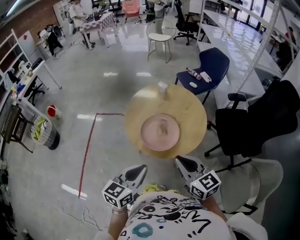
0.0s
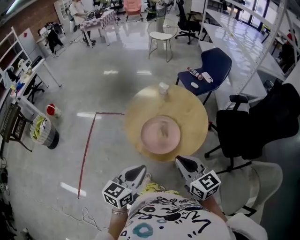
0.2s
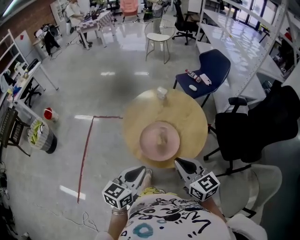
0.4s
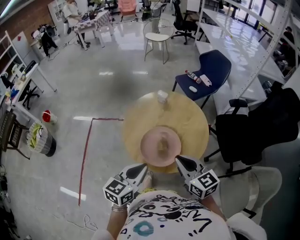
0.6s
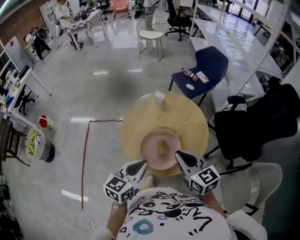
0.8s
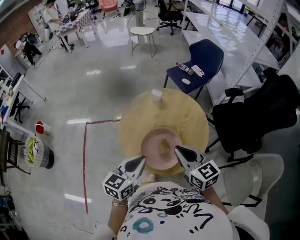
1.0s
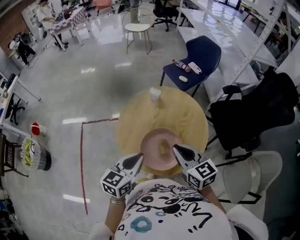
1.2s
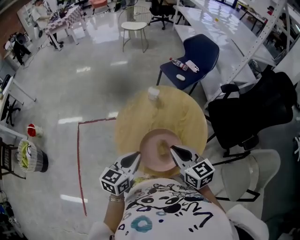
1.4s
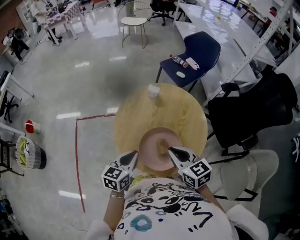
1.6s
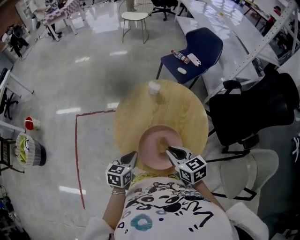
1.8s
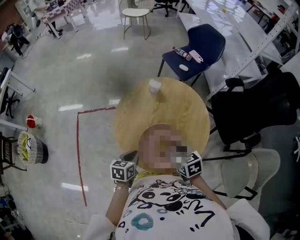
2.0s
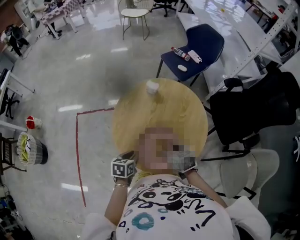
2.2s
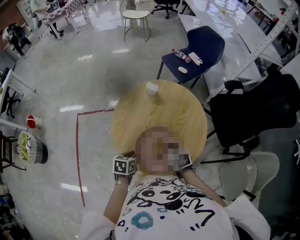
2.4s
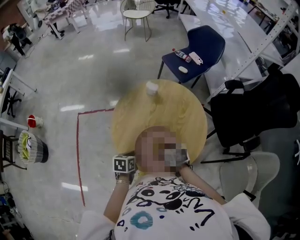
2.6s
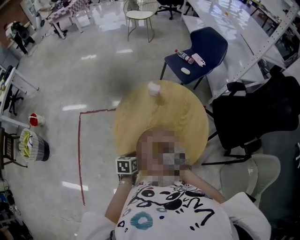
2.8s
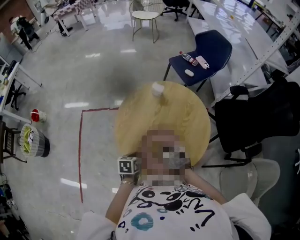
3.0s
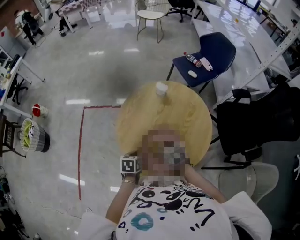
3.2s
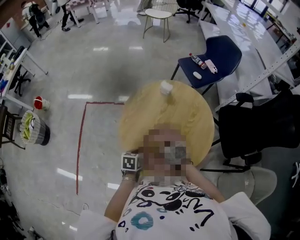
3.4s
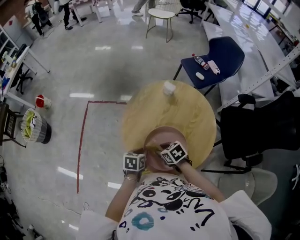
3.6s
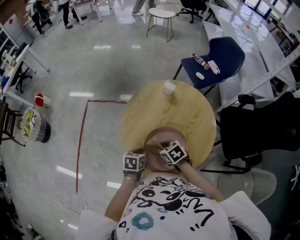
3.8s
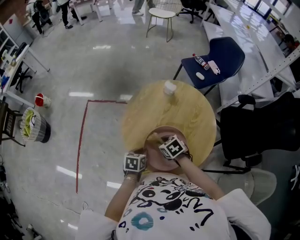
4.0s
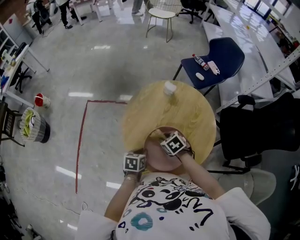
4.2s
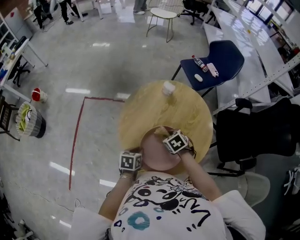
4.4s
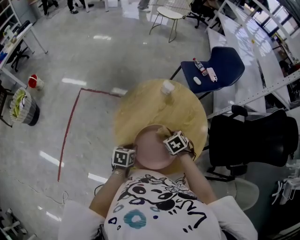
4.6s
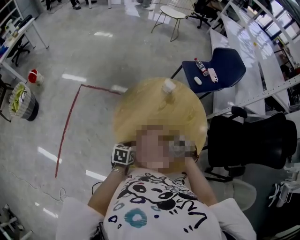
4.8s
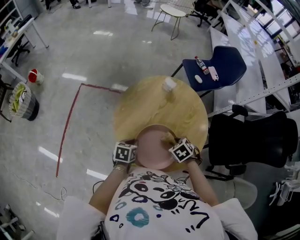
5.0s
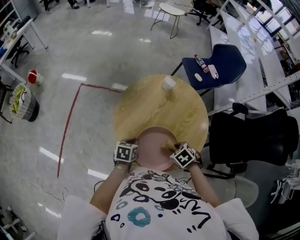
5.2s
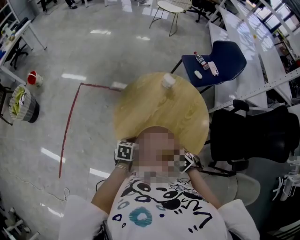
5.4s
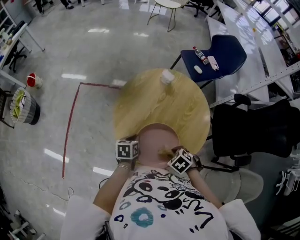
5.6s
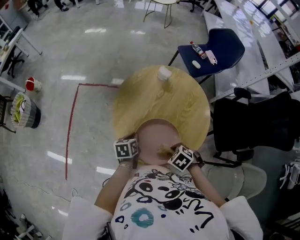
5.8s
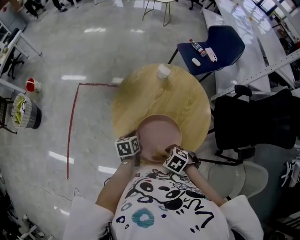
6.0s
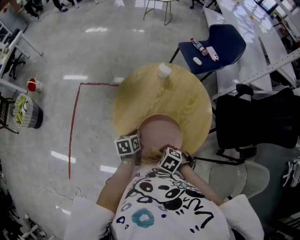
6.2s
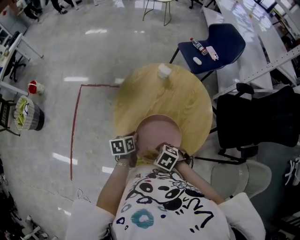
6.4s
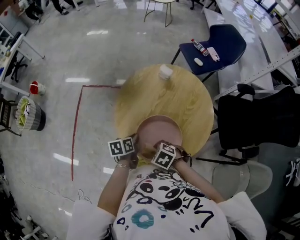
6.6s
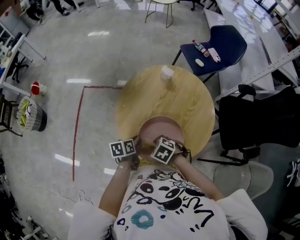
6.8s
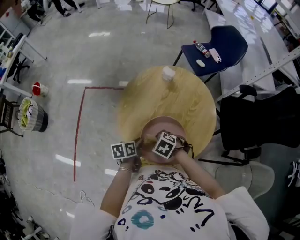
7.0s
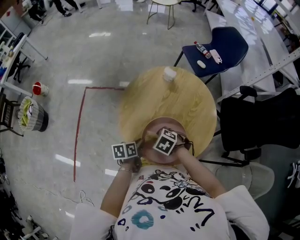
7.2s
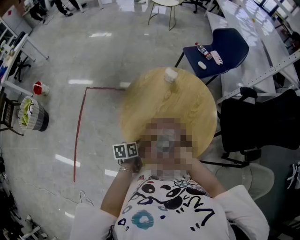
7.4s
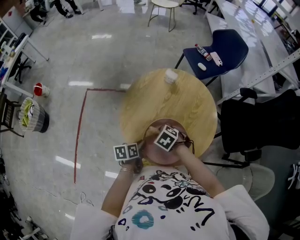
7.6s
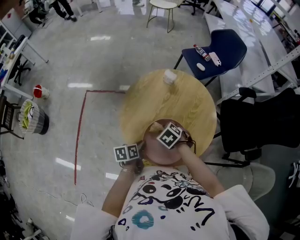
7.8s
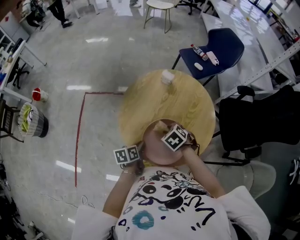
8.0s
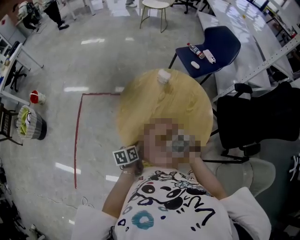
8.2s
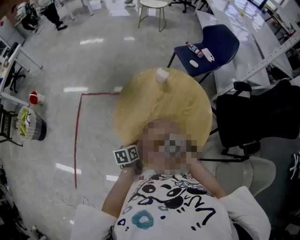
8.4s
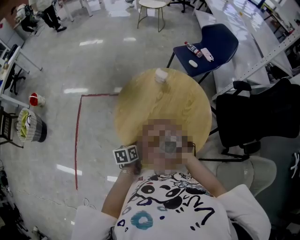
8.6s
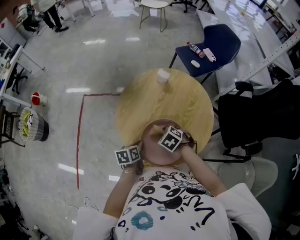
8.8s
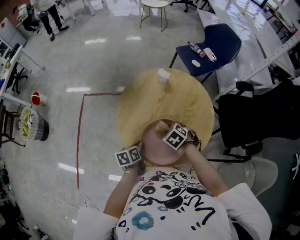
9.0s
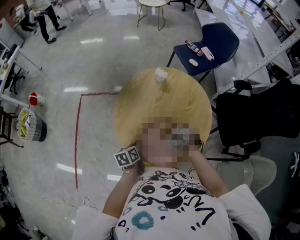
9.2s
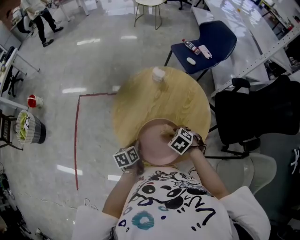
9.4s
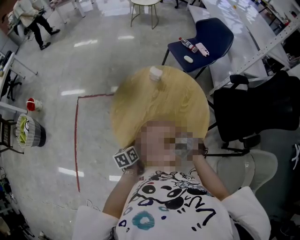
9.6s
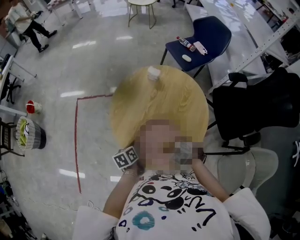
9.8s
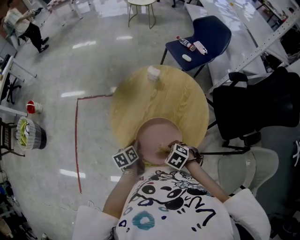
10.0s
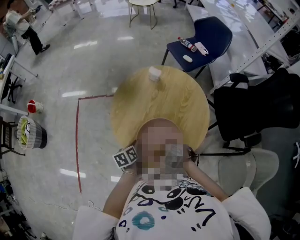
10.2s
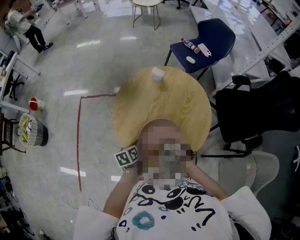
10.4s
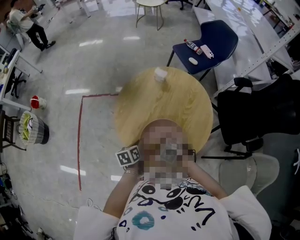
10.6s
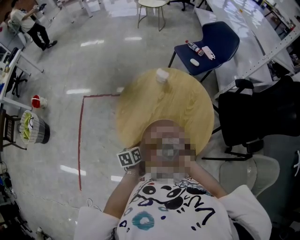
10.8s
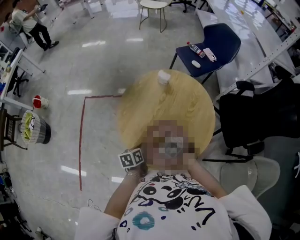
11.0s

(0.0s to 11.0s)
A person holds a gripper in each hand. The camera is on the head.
0.0s - 1.6s: Both grippers travel together forward, about 25 cm.
1.6s - 3.2s: The two grippers go approximately 15 cm downward. The right gripper rotates about 30 degrees, and opens its fingers. The left gripper swivels approximately 30 degrees.
3.2s - 4.8s: The right gripper changes place by approximately 10 cm, and turns by approximately 30 degrees.
4.8s - 6.2s: The right gripper shifts by roughly 15 cm, and changes its angle by roughly 30 degrees.
6.2s - 7.8s: The right gripper moves some 15 cm.
7.8s - 9.4s: The right gripper shifts by roughly 10 cm.
9.4s - 11.0s: The right gripper changes place by some 10 cm.

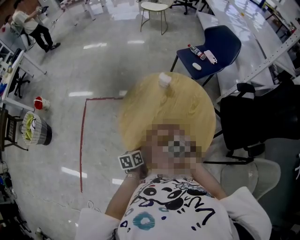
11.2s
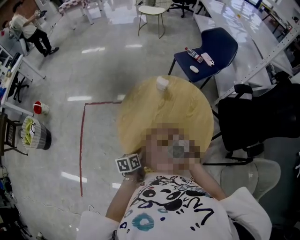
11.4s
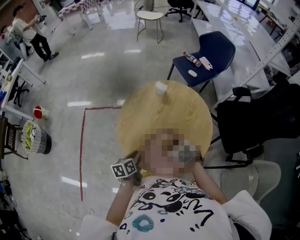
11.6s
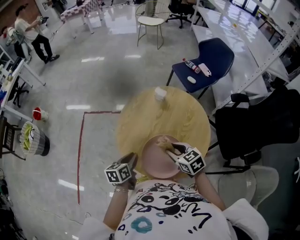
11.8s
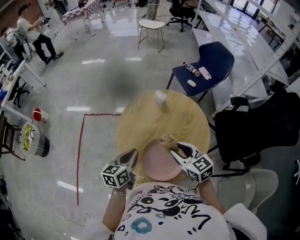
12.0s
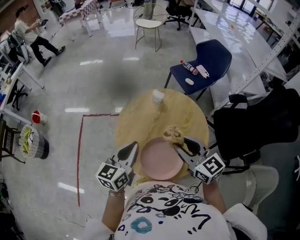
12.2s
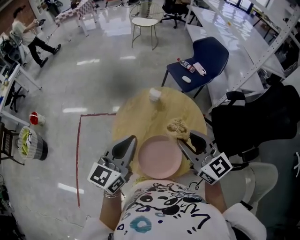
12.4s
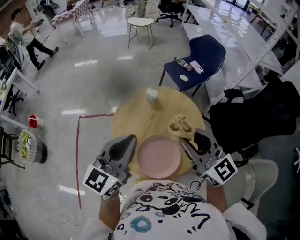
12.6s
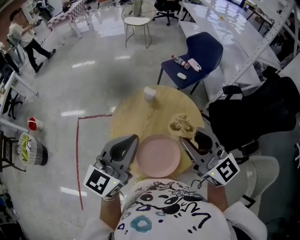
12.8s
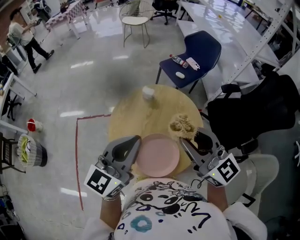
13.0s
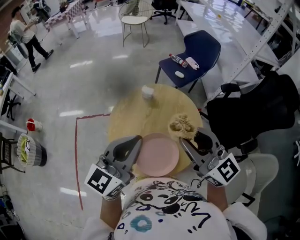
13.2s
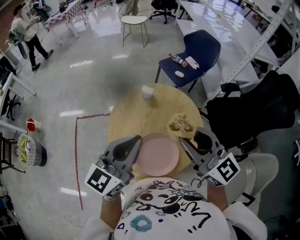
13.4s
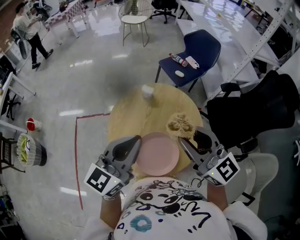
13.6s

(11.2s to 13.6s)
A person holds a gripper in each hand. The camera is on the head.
11.2s - 12.4s: Both grippers move upward, about 30 cm. The left gripper points its fingers approximately 40 degrees further upward. The right gripper tilts its fingers roughly 60 degrees upward.
12.4s - 13.6s: The right gripper goes about 5 cm upward; the left gripper shifts by roughly 5 cm.

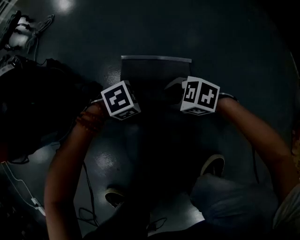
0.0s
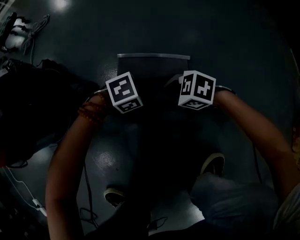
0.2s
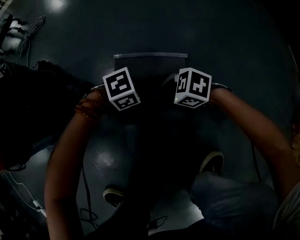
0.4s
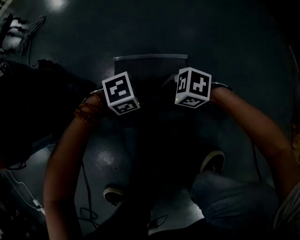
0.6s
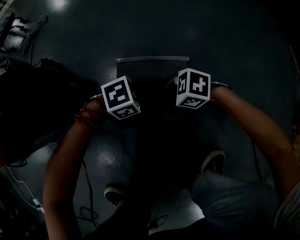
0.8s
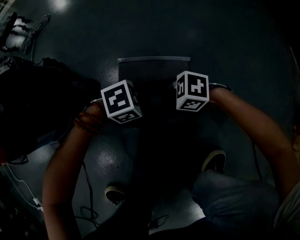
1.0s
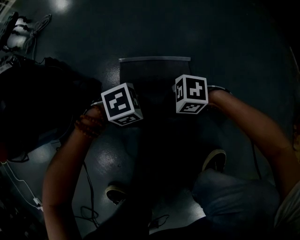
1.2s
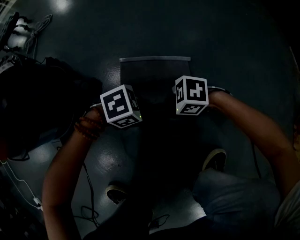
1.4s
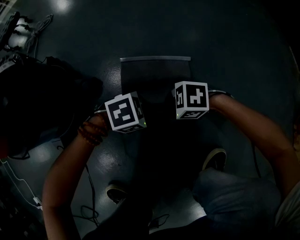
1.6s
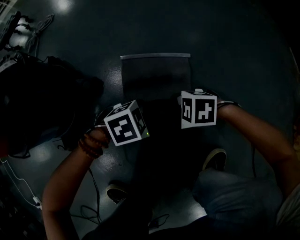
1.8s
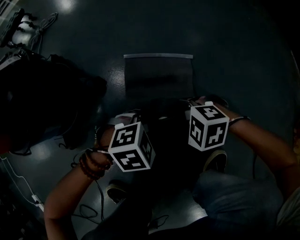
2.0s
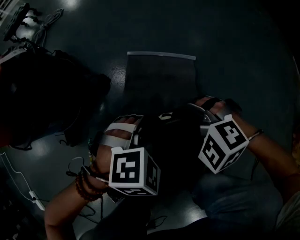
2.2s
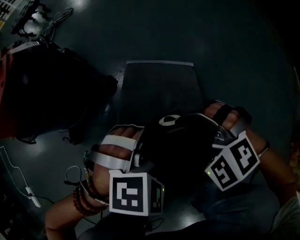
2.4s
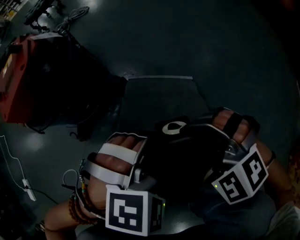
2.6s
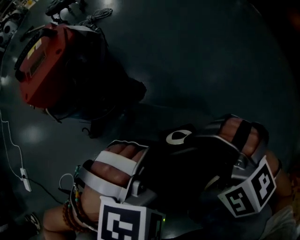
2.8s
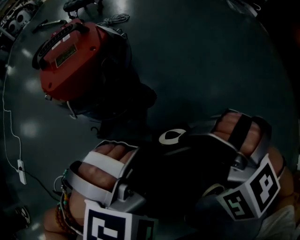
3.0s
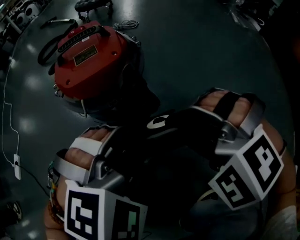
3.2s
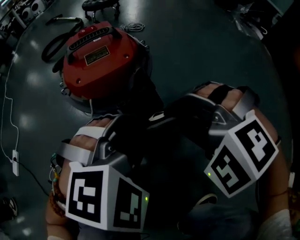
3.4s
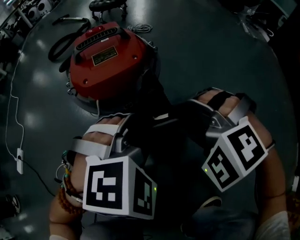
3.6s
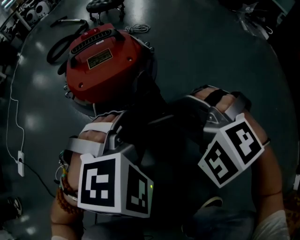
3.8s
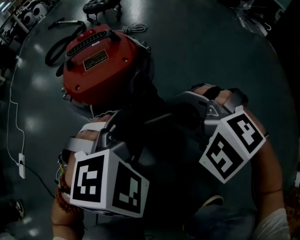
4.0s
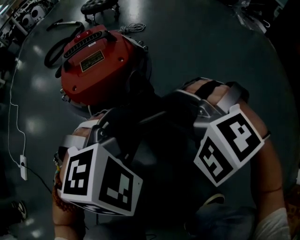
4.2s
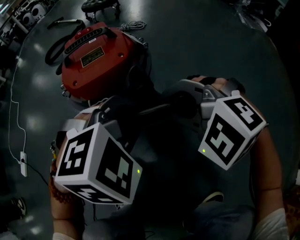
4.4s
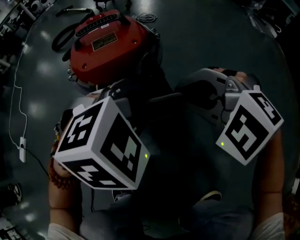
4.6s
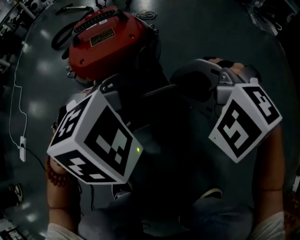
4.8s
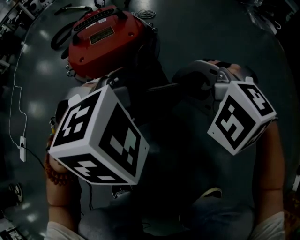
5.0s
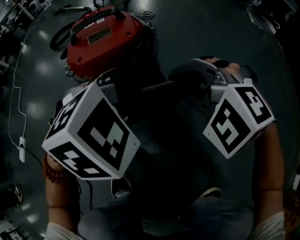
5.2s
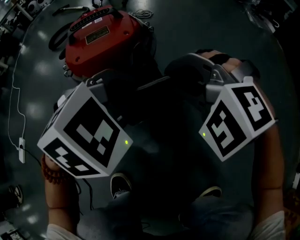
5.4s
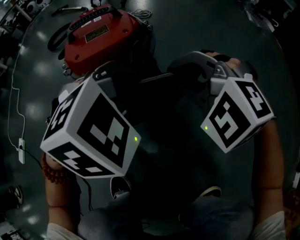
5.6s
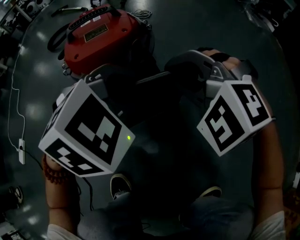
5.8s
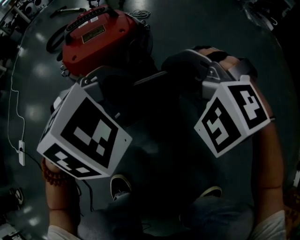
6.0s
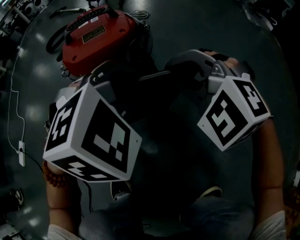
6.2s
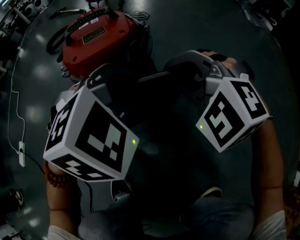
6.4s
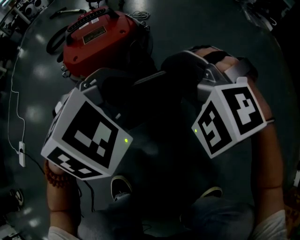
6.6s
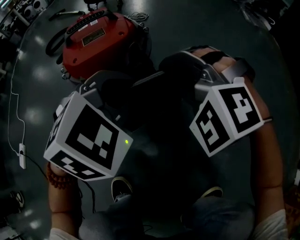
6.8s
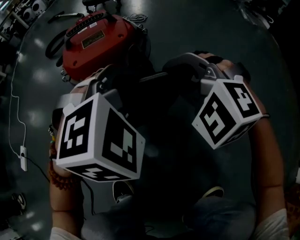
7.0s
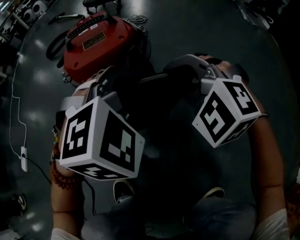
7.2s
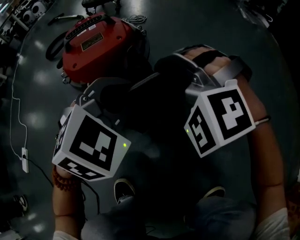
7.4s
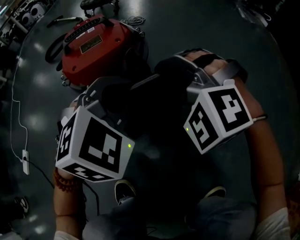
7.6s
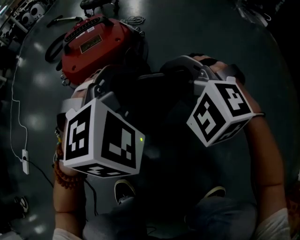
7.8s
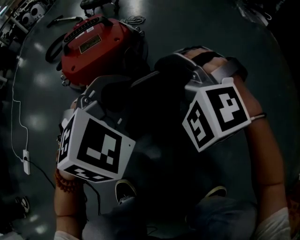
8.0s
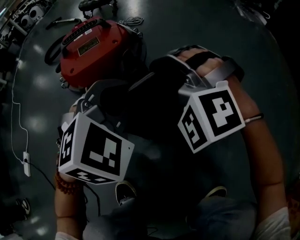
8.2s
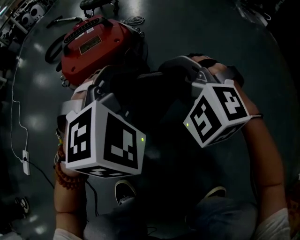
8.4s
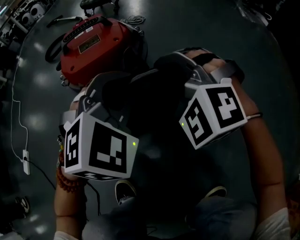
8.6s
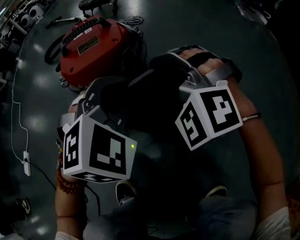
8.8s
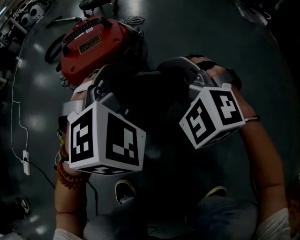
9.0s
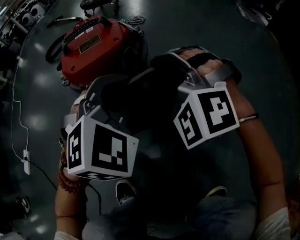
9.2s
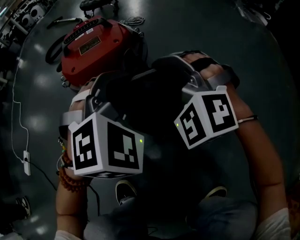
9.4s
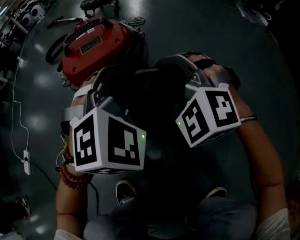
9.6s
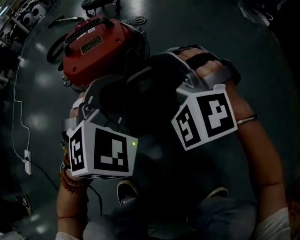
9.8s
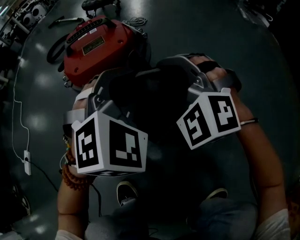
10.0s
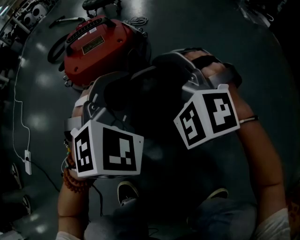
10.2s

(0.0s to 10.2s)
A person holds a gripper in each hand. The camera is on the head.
0.0s - 1.4s: The right gripper goes roughly 5 cm forward, rotates some 20 degrees, and closes its fingers. Meanwhile the left gripper ends up about 5 cm from where it was, and closes its fingers.
1.4s - 3.0s: The grippers both shift upward by approximately 30 cm. The left gripper rotates approximately 60 degrees, while the right gripper rotates around the line of its fingers by approximately 60 degrees, counterclockwise from behind.
3.0s - 4.4s: The grippers both shift forward and to the left by approximately 10 cm.
4.4s - 5.8s: The grippers stay close to where they were, moving slightly.
5.8s - 8.8s: The grippers move only a little.
8.8s - 10.2s: The grippers make only small movements.
